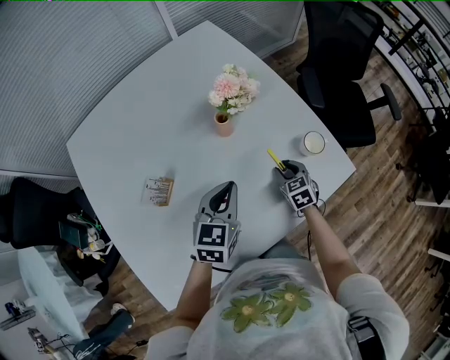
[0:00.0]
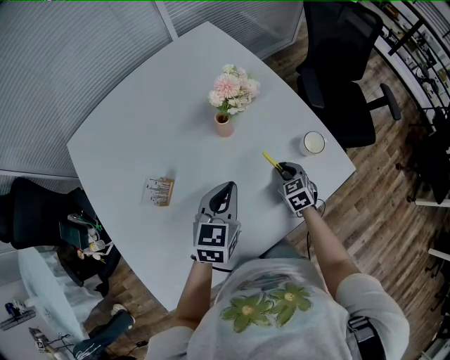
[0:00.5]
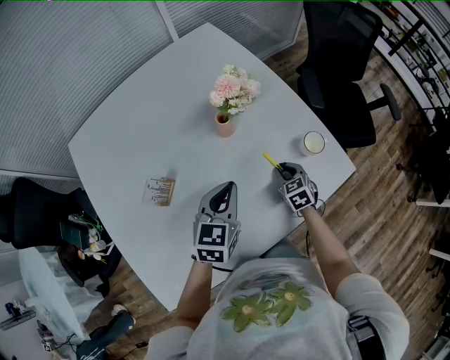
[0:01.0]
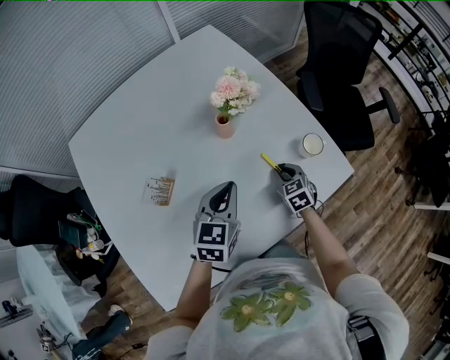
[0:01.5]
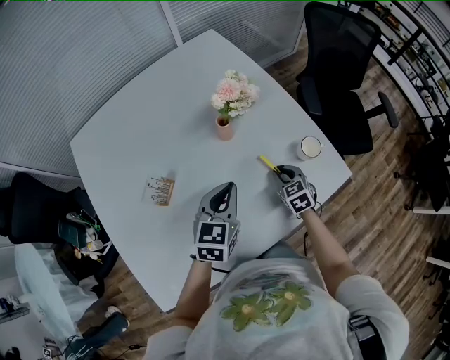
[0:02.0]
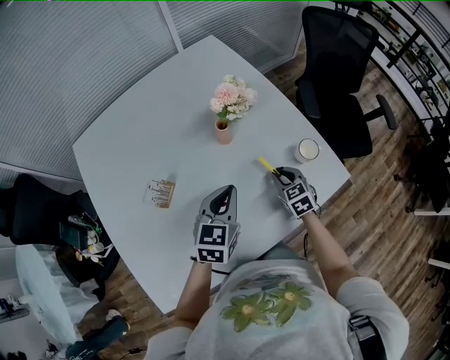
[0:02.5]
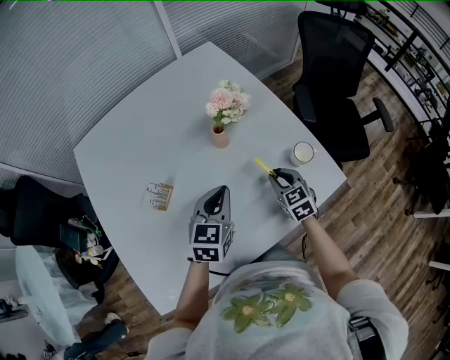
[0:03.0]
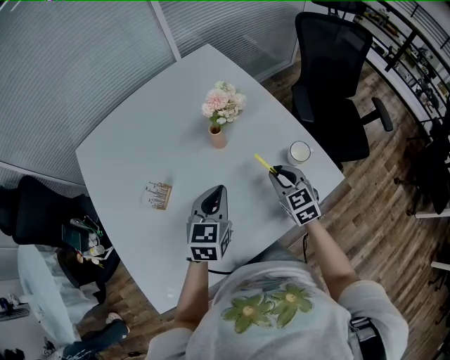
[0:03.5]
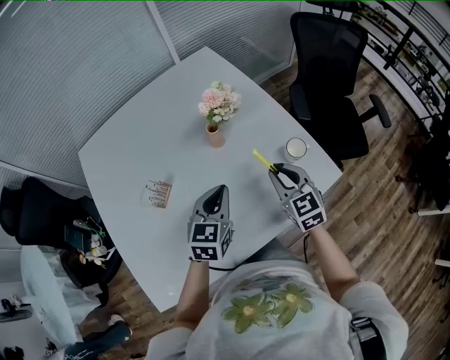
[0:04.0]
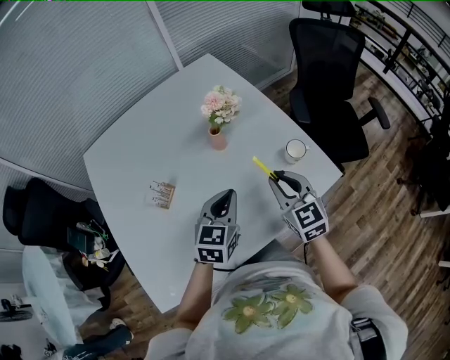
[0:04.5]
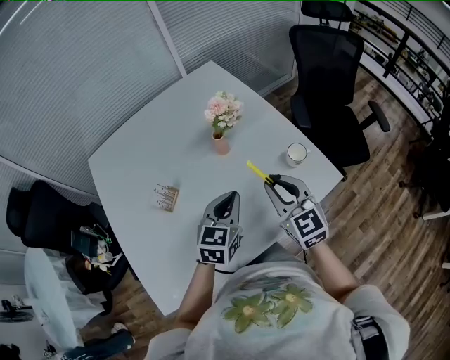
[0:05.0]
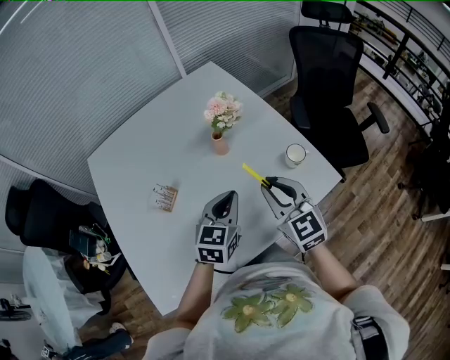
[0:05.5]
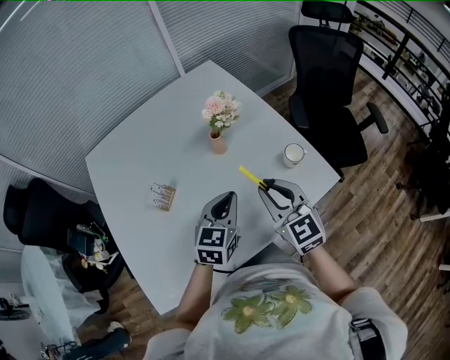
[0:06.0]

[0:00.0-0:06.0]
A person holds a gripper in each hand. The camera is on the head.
0:00.0 to 0:02.0: The grippers make only small movements.
0:02.0 to 0:04.0: The right gripper travels upward by about 20 cm, and turns by approximately 20 degrees.
0:04.0 to 0:06.0: The right gripper is displaced upward and backward by about 10 cm.

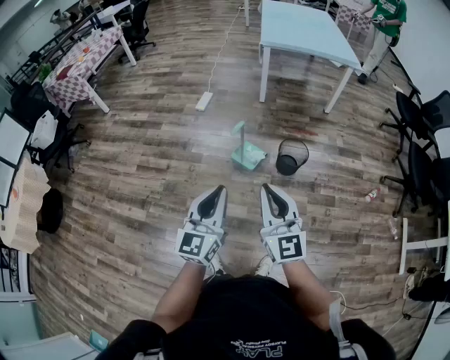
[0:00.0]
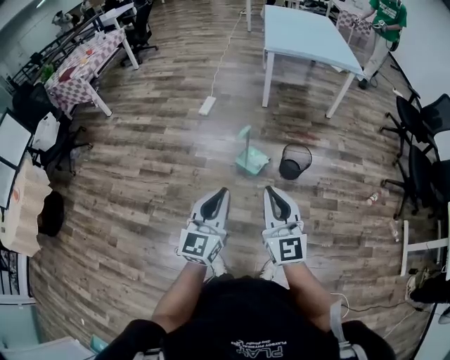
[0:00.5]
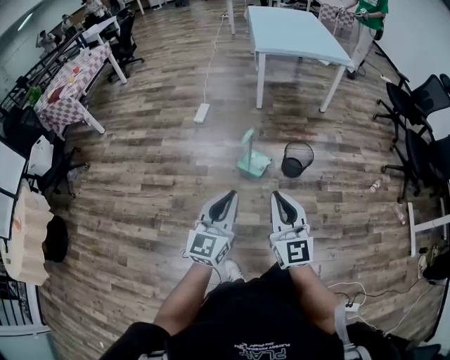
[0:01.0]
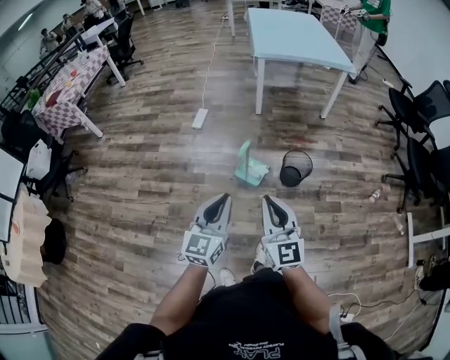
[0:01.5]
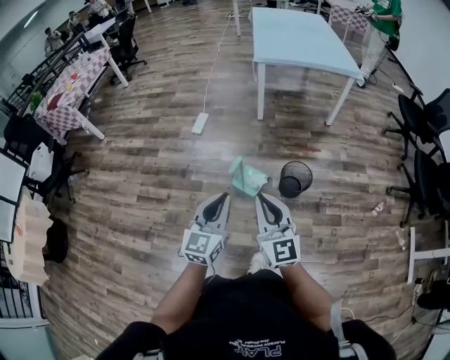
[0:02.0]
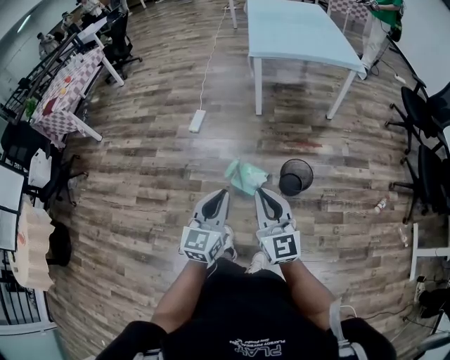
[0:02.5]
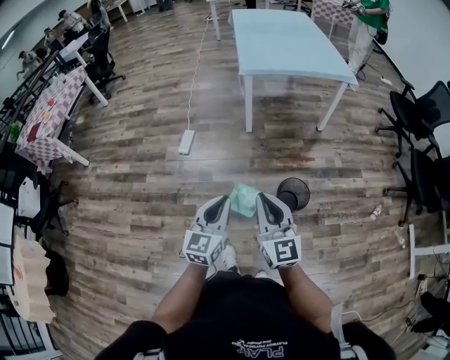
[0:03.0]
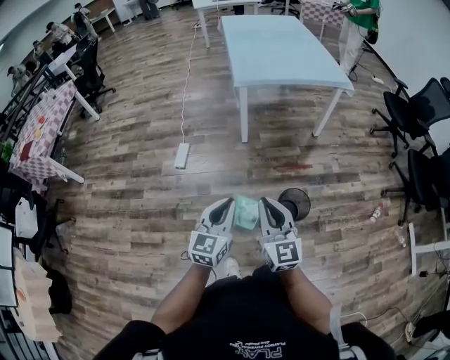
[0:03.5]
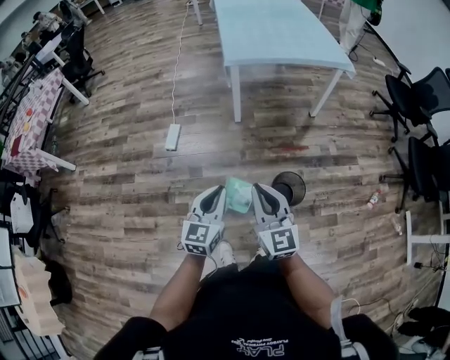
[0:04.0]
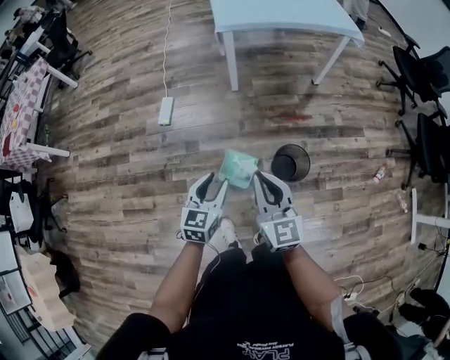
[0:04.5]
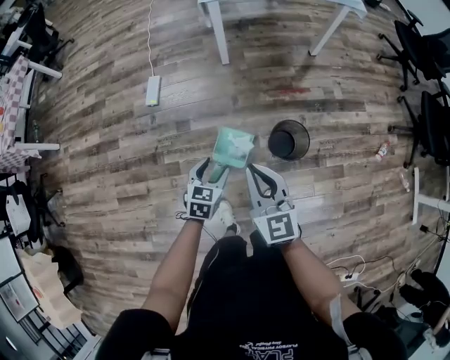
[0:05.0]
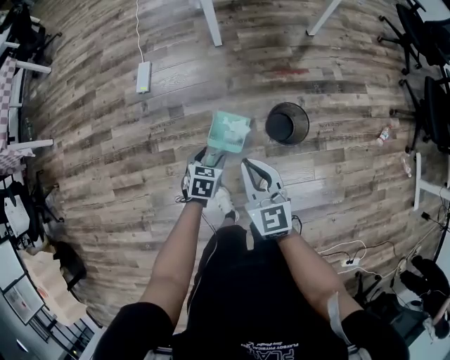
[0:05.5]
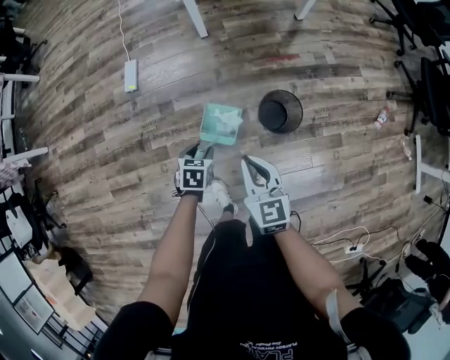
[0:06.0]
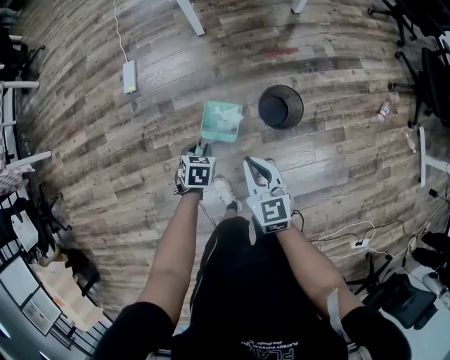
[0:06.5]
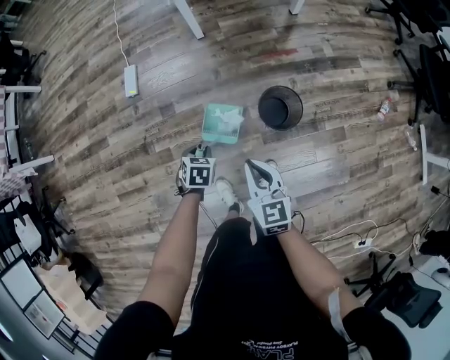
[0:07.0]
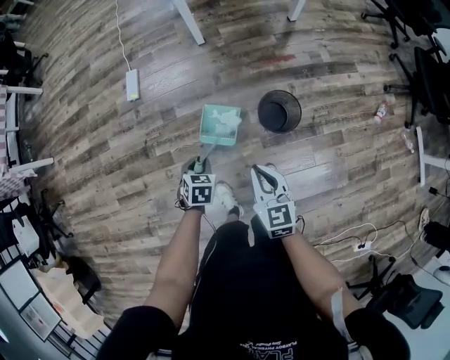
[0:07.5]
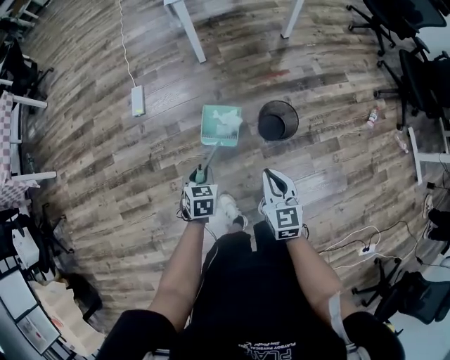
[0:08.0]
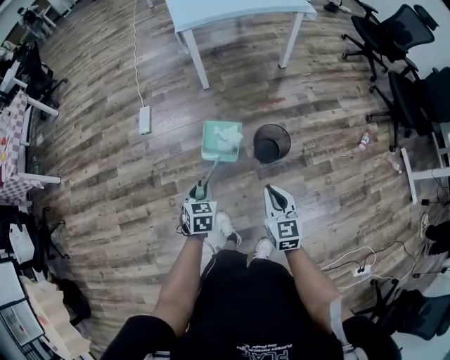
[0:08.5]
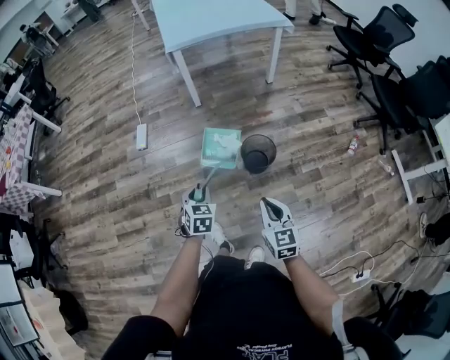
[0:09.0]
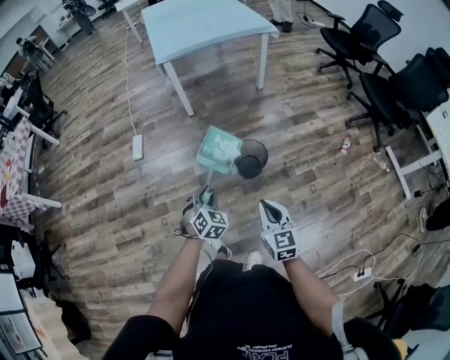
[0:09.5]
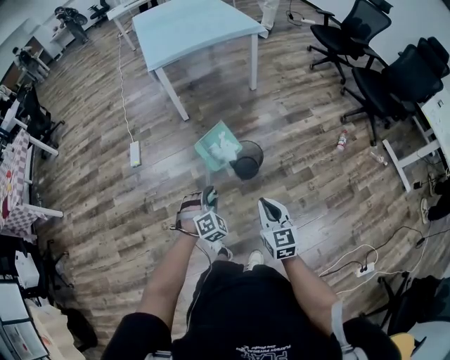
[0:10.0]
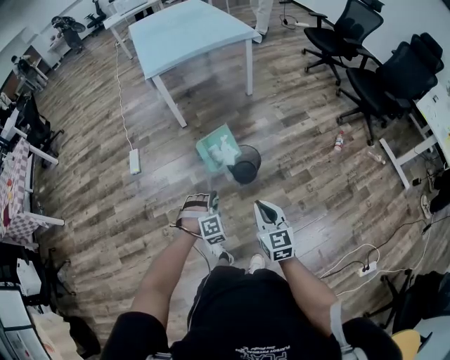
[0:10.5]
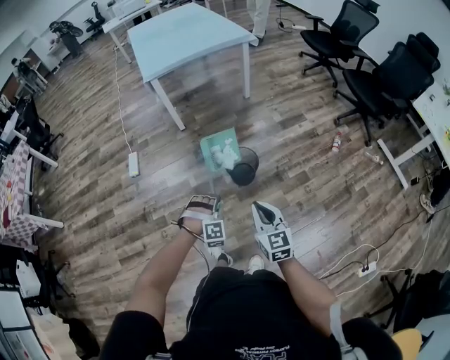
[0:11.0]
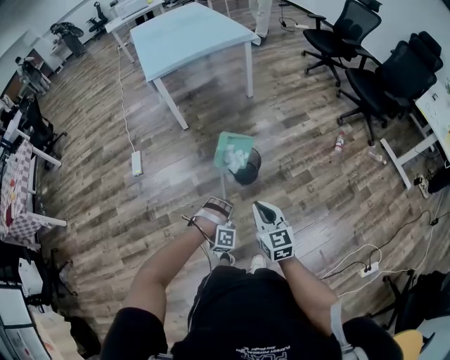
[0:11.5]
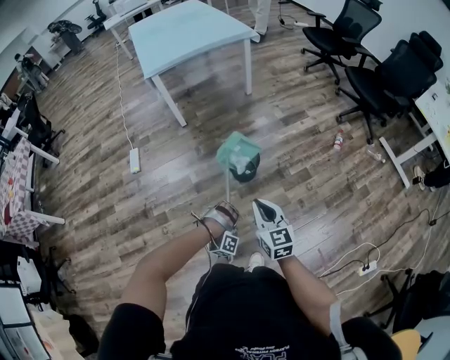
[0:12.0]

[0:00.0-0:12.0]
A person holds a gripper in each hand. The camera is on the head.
0:00.0 to 0:02.0: Both grippers move forward, roughly 20 cm.
0:02.0 to 0:04.0: Both grippers move forward, approximately 30 cm.
0:04.0 to 0:06.0: The grippers both shift downward by some 25 cm. The left gripper angles its fingers downward, by some 50 degrees, and opens. Meanwhile the right gripper rotates some 30 degrees.
0:06.0 to 0:08.0: The left gripper shifts some 10 cm upward and backward. Meanwhile the right gripper is displaced backward by about 10 cm.
0:08.0 to 0:10.0: The left gripper travels to the right, backward and upward by approximately 25 cm, and rolls clockwise, seen from behind, by about 60 degrees, while the right gripper is displaced backward, to the right and upward by some 20 cm.
0:10.0 to 0:12.0: The left gripper travels backward and downward by approximately 15 cm, and rotates around the line of its fingers by some 70 degrees, clockwise from behind.

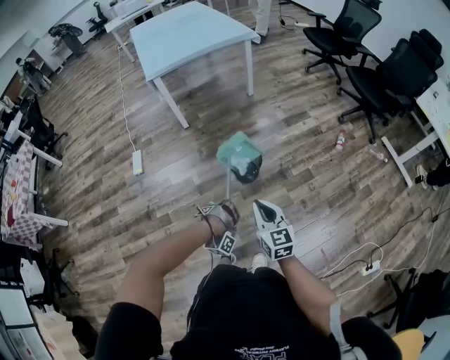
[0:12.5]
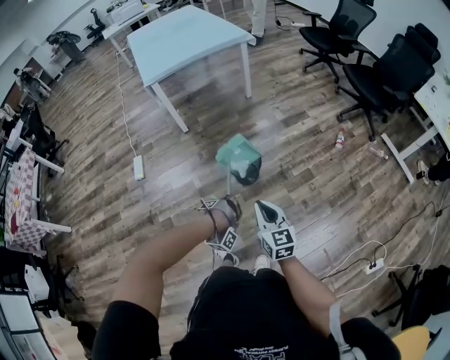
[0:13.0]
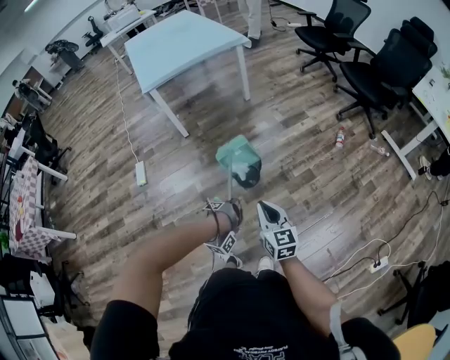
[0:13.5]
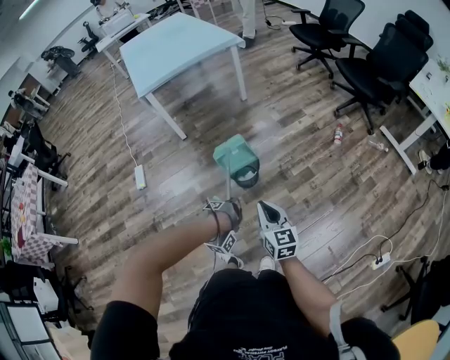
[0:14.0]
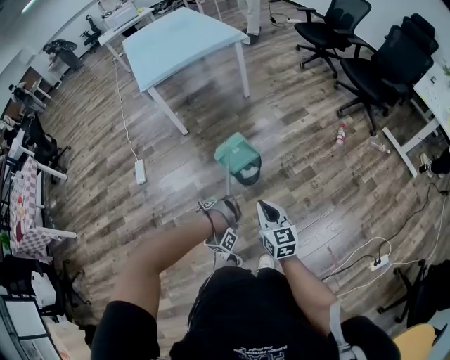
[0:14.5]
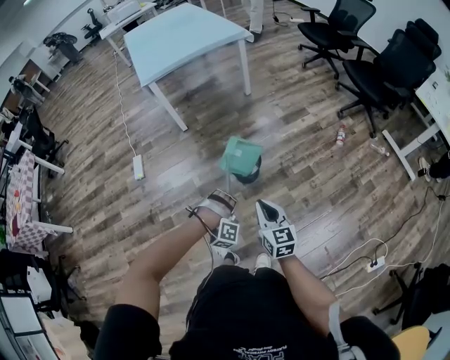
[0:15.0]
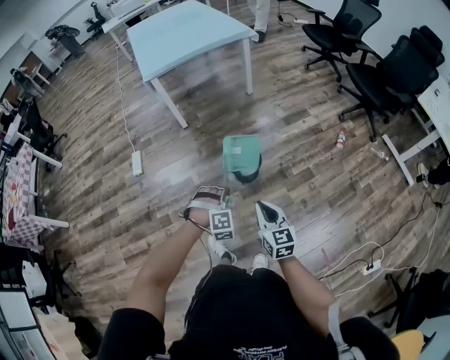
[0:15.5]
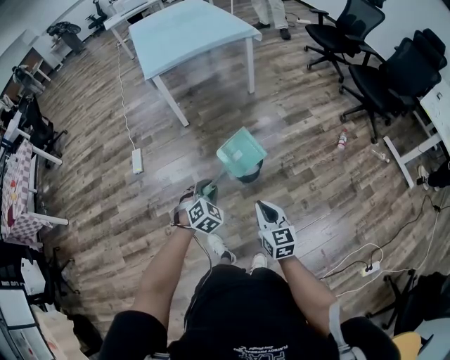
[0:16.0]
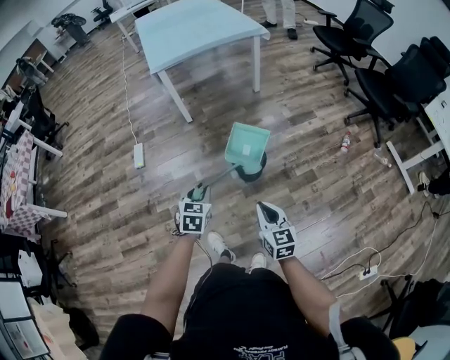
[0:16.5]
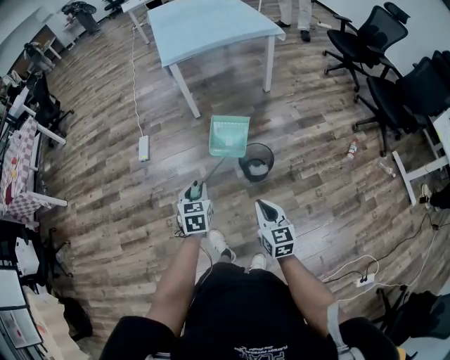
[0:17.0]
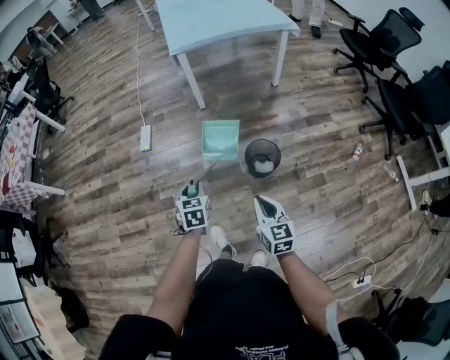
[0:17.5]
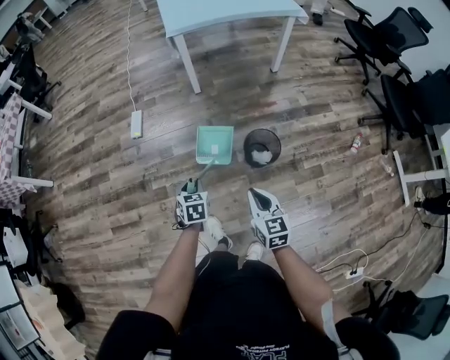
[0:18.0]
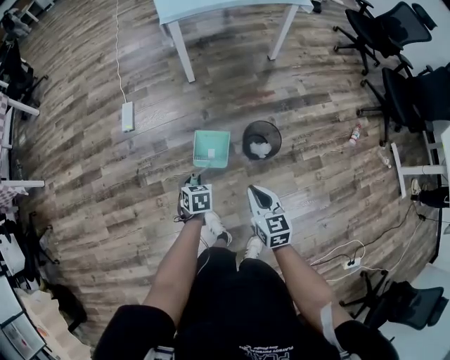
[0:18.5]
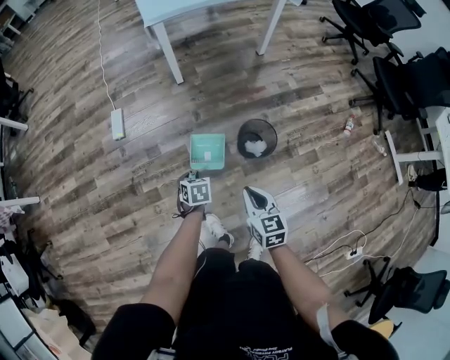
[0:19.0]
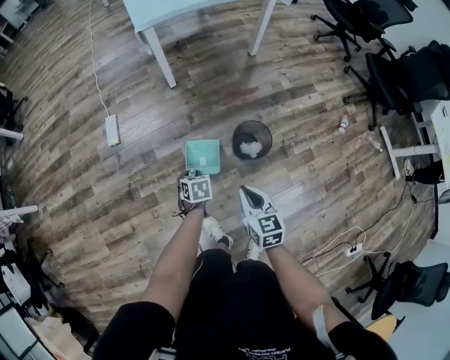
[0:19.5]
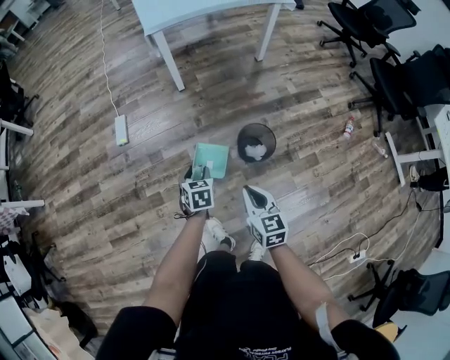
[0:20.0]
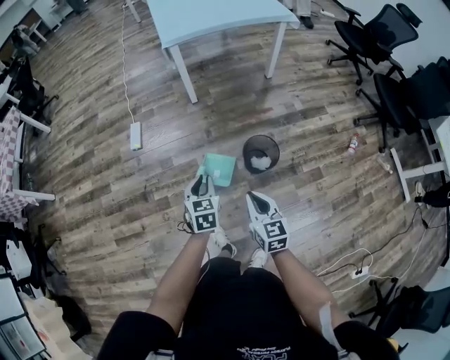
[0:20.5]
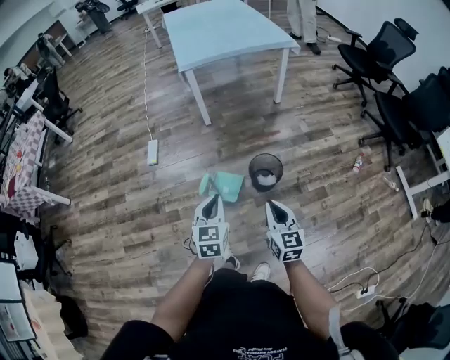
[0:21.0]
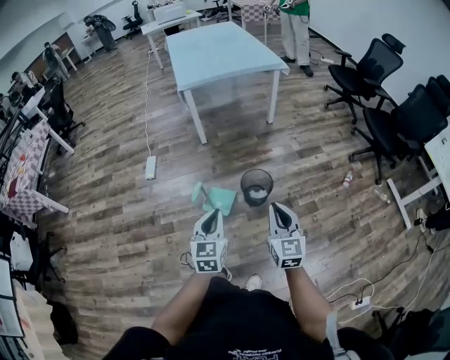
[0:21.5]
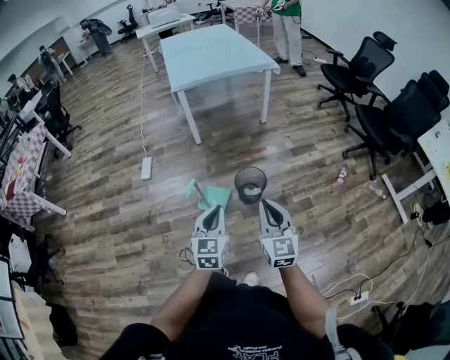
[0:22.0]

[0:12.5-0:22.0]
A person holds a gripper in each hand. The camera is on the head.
0:14.5 to 0:16.5: The left gripper travels upward, forward and to the left by roughly 15 cm, and rotates around the line of its fingers by roughly 150 degrees, counterclockwise from behind.
0:16.5 to 0:18.0: The left gripper travels to the left, downward and forward by roughly 20 cm, and turns by roughly 20 degrees; the right gripper heads forward and to the left, covering about 15 cm.
0:18.0 to 0:20.0: The left gripper is displaced forward by approximately 10 cm, moves some 10 cm downward and comes back, and opens its fingers. Meanwhile the right gripper shifts by some 5 cm.
0:20.0 to 0:22.0: Both grippers move upward, backward and to the right, some 35 cm. The right gripper turns by roughly 30 degrees. Meanwhile the left gripper tilts its fingers approximately 40 degrees upward, and closes up.
